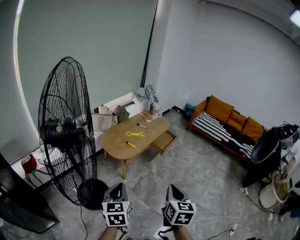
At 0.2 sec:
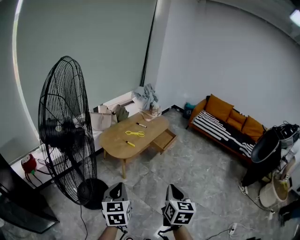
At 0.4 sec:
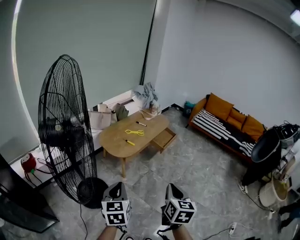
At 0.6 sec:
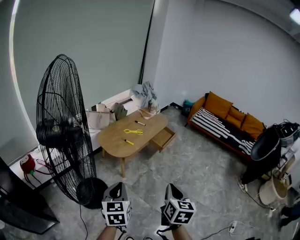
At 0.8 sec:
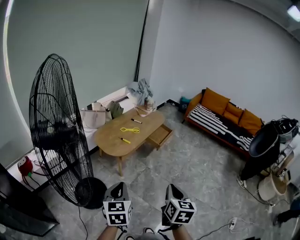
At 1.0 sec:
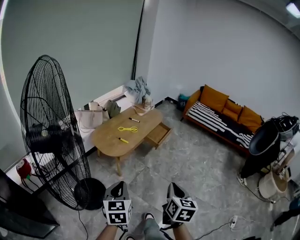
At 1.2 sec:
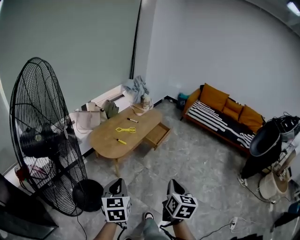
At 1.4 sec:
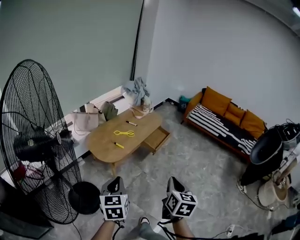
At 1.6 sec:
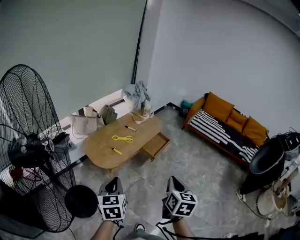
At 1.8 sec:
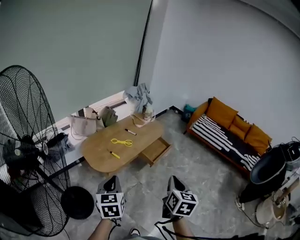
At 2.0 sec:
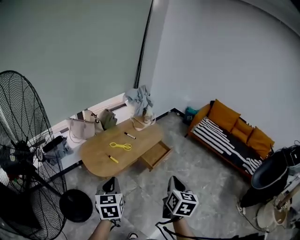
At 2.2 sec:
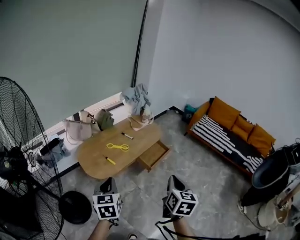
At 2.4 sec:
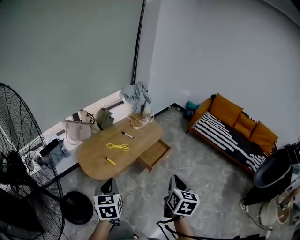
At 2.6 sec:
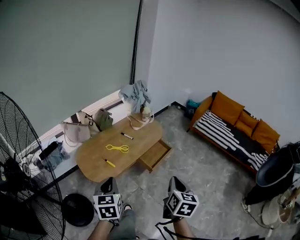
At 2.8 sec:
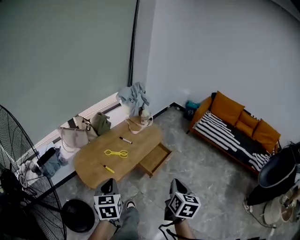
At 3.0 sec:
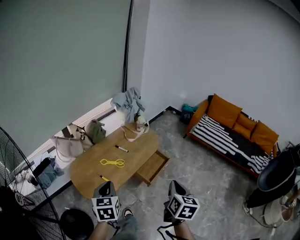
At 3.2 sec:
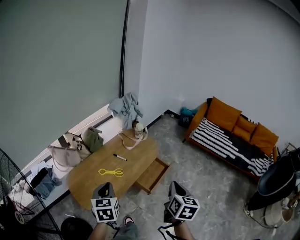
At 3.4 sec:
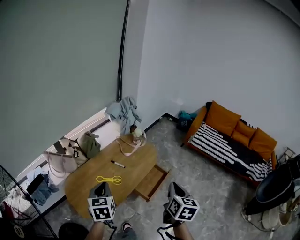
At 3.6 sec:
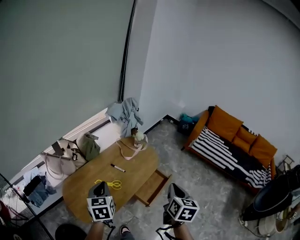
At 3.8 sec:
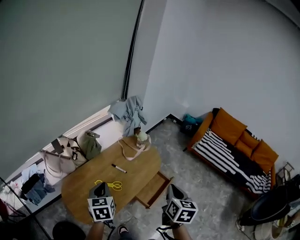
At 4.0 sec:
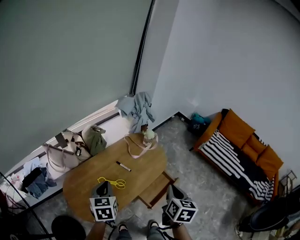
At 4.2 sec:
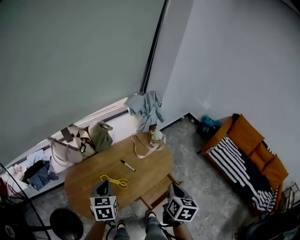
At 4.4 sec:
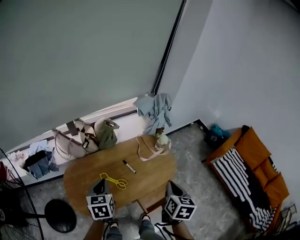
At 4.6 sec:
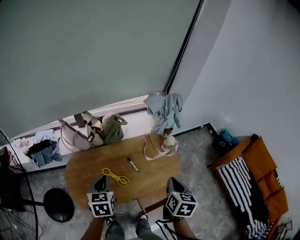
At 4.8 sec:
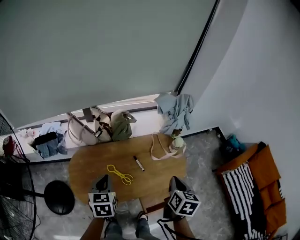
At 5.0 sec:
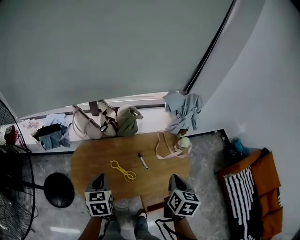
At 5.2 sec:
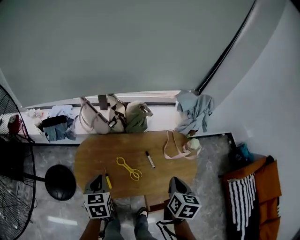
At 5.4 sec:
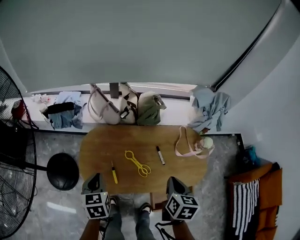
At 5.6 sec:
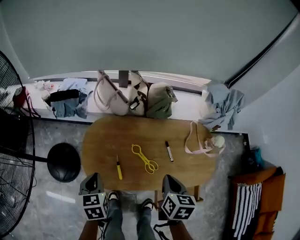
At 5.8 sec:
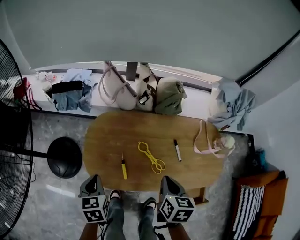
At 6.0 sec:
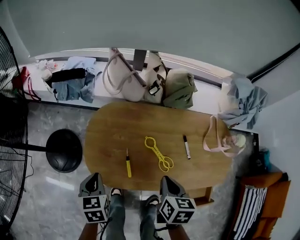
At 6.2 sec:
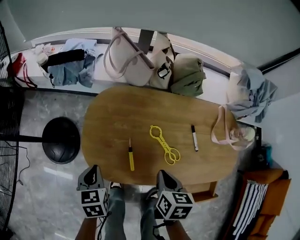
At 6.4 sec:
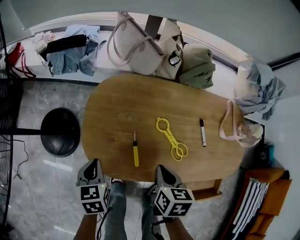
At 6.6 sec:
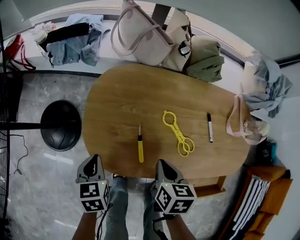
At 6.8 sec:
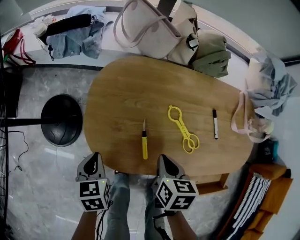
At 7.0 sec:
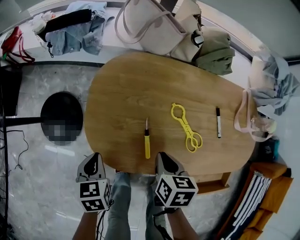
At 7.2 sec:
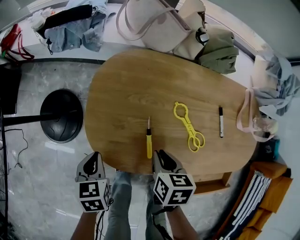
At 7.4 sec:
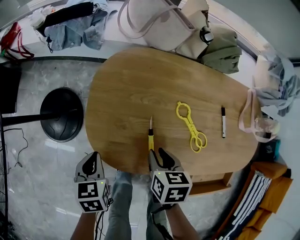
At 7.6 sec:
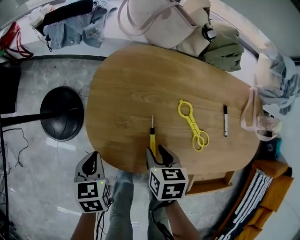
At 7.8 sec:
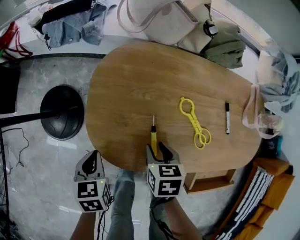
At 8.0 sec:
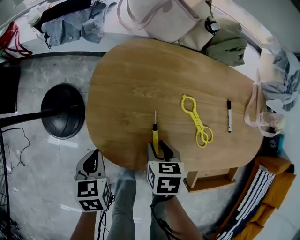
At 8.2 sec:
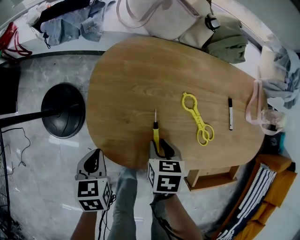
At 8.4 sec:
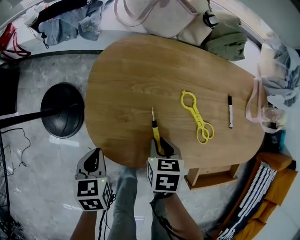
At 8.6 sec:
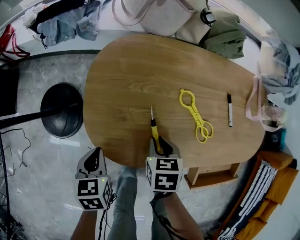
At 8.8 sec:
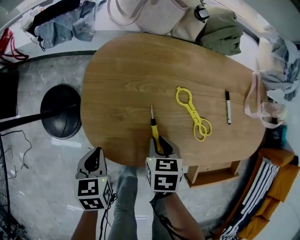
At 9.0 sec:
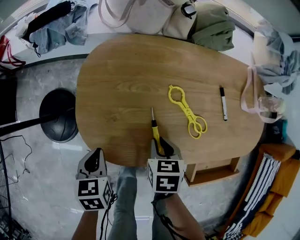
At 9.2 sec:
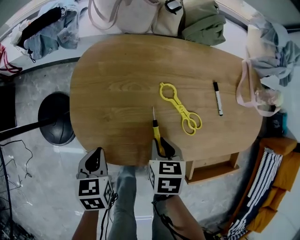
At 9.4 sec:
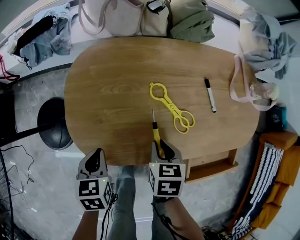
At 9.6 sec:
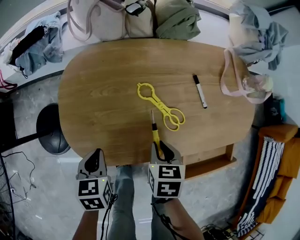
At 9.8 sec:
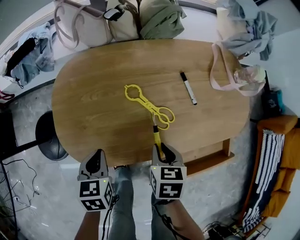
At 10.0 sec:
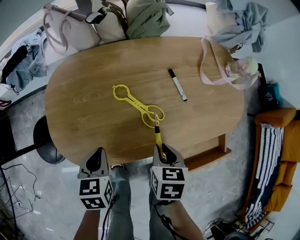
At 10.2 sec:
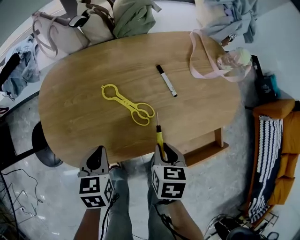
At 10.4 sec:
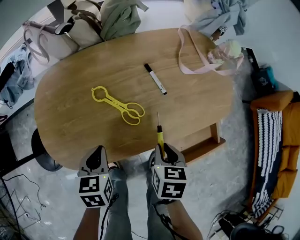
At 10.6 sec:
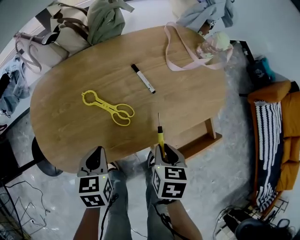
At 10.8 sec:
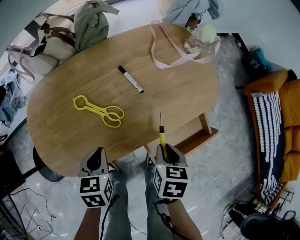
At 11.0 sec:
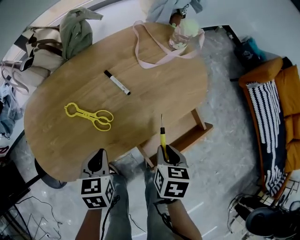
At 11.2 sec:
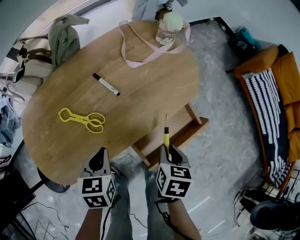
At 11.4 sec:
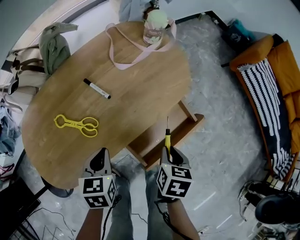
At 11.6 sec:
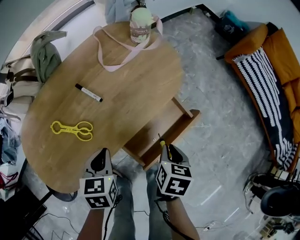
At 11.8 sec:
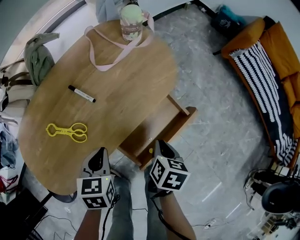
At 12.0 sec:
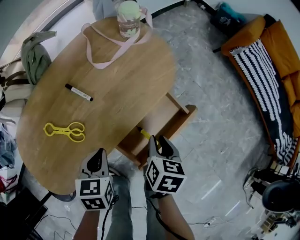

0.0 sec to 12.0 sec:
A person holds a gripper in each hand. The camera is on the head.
0.0 sec to 1.6 sec: Both grippers travel together forward and to the right, about 25 cm.
1.6 sec to 3.0 sec: The two grippers go about 30 cm forward.
3.0 sec to 4.4 sec: Both grippers travel together forward, some 30 cm. The right gripper changes its angle by about 20 degrees. The left gripper turns by approximately 20 degrees.
4.4 sec to 6.0 sec: The two grippers go about 25 cm downward. The left gripper rotates approximately 40 degrees; the right gripper turns by some 40 degrees.
6.0 sec to 7.6 sec: The grippers both shift downward and to the left by approximately 20 cm. The right gripper opens its fingers.
7.6 sec to 9.0 sec: The grippers make only small movements.
9.0 sec to 10.4 sec: Both grippers travel together to the right, about 20 cm. The left gripper turns by some 20 degrees; the right gripper changes its angle by approximately 30 degrees.
10.4 sec to 12.0 sec: The right gripper changes place by about 20 cm, and rotates about 40 degrees; the left gripper moves approximately 20 cm, and swivels roughly 30 degrees.

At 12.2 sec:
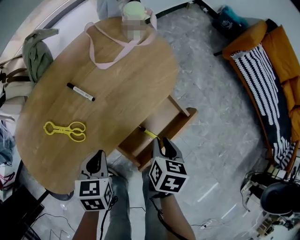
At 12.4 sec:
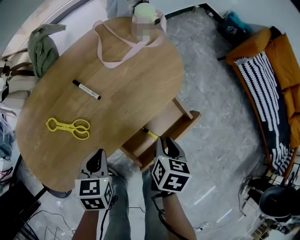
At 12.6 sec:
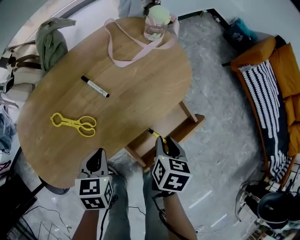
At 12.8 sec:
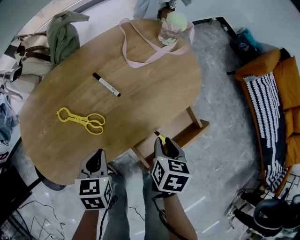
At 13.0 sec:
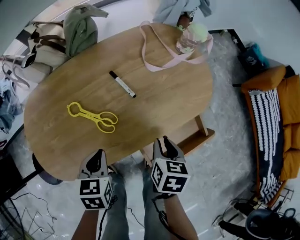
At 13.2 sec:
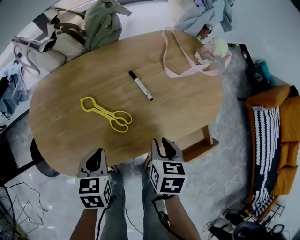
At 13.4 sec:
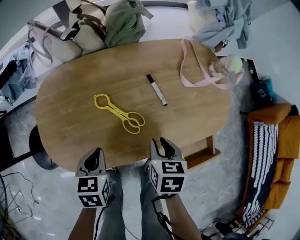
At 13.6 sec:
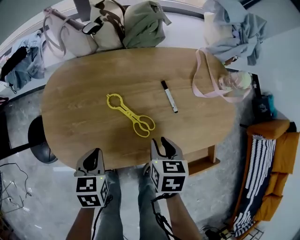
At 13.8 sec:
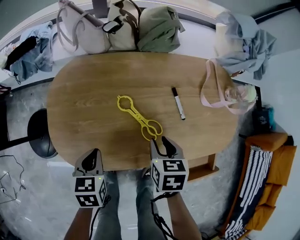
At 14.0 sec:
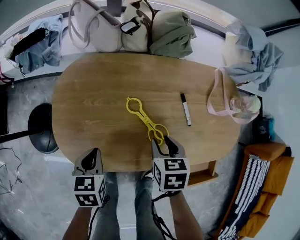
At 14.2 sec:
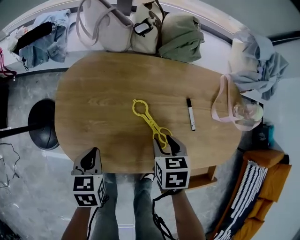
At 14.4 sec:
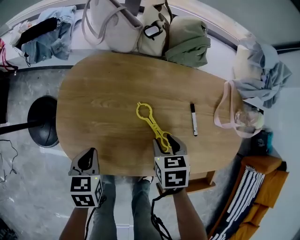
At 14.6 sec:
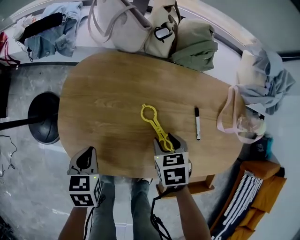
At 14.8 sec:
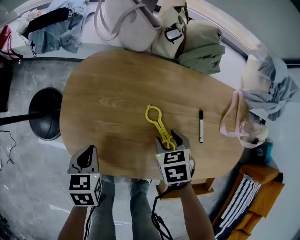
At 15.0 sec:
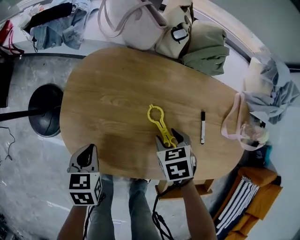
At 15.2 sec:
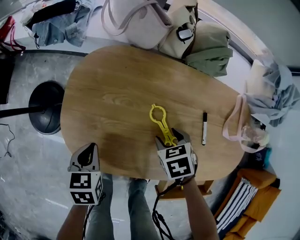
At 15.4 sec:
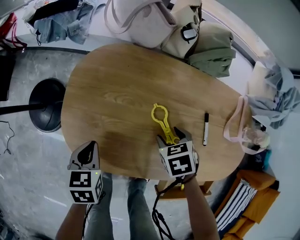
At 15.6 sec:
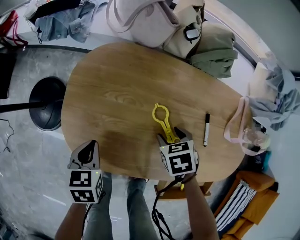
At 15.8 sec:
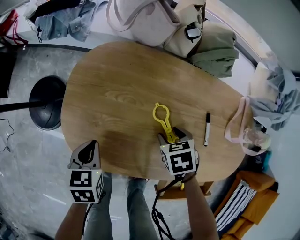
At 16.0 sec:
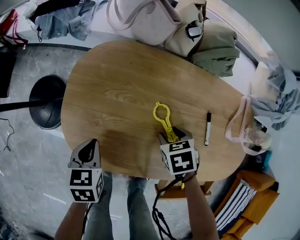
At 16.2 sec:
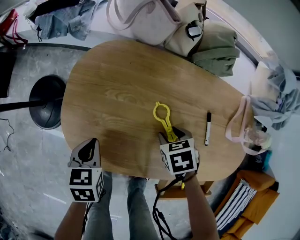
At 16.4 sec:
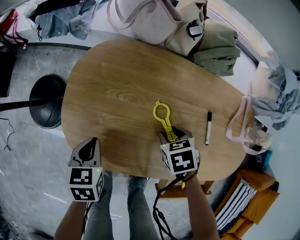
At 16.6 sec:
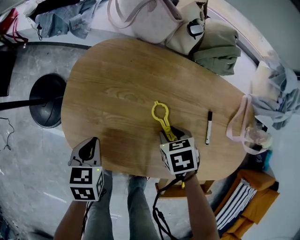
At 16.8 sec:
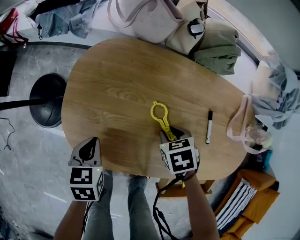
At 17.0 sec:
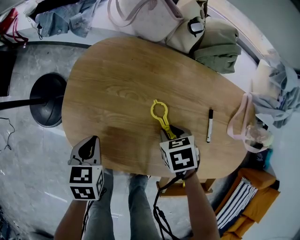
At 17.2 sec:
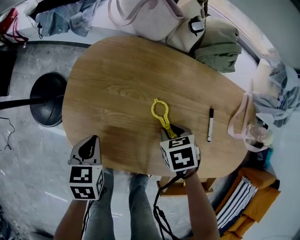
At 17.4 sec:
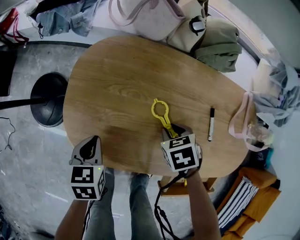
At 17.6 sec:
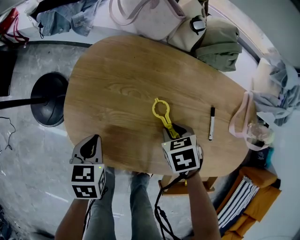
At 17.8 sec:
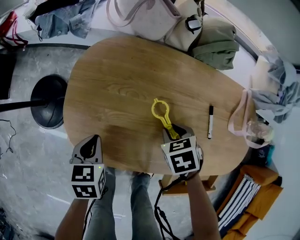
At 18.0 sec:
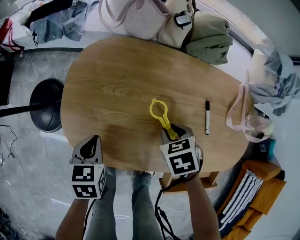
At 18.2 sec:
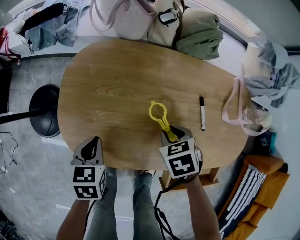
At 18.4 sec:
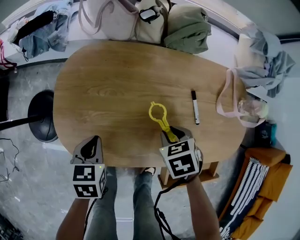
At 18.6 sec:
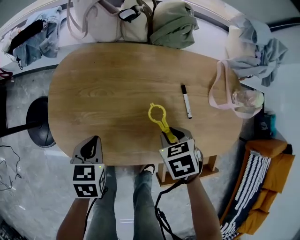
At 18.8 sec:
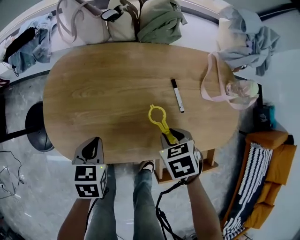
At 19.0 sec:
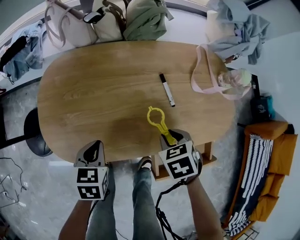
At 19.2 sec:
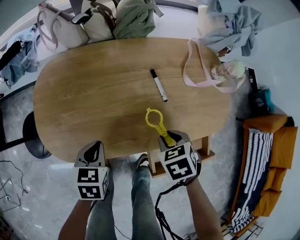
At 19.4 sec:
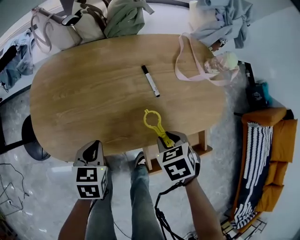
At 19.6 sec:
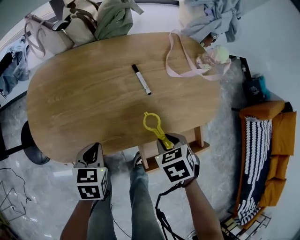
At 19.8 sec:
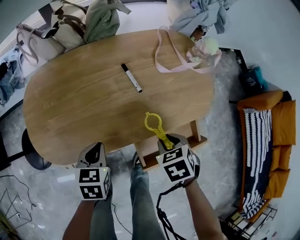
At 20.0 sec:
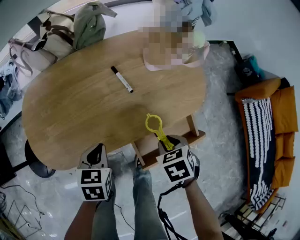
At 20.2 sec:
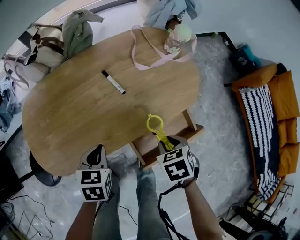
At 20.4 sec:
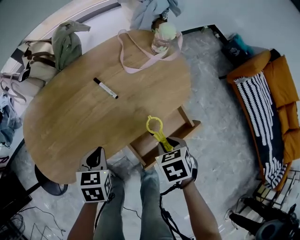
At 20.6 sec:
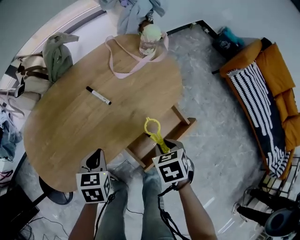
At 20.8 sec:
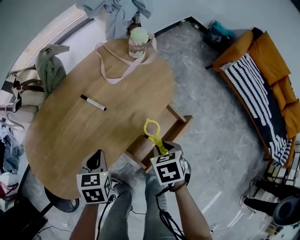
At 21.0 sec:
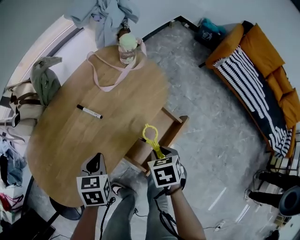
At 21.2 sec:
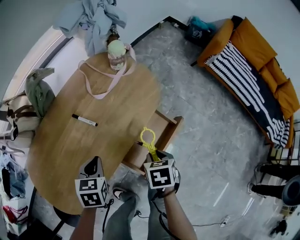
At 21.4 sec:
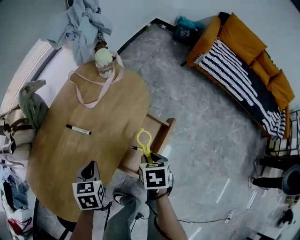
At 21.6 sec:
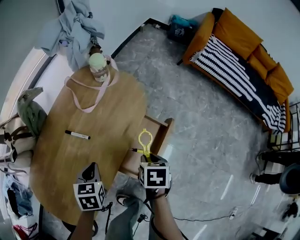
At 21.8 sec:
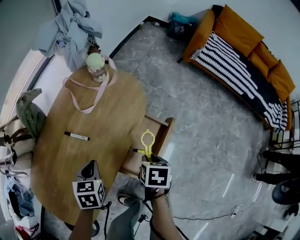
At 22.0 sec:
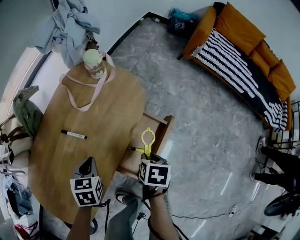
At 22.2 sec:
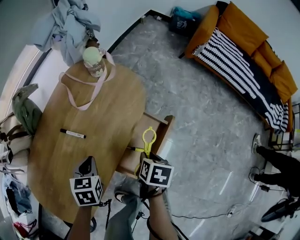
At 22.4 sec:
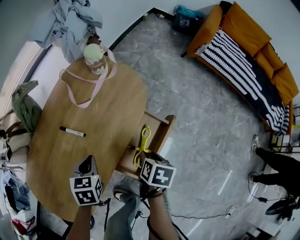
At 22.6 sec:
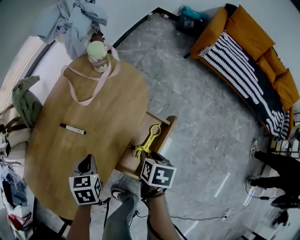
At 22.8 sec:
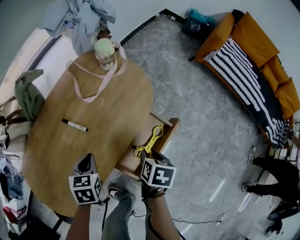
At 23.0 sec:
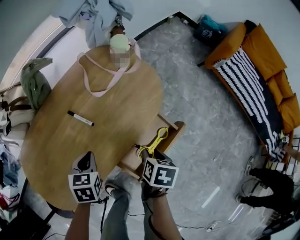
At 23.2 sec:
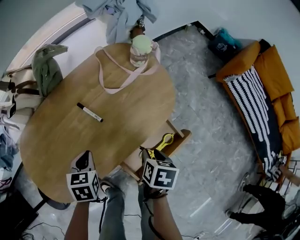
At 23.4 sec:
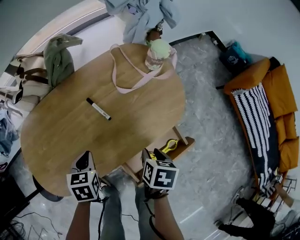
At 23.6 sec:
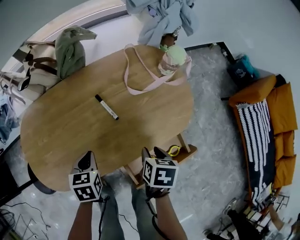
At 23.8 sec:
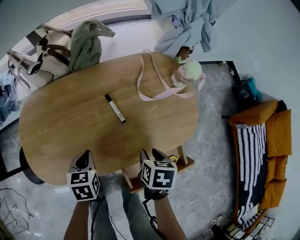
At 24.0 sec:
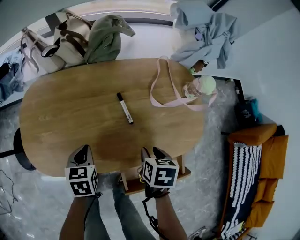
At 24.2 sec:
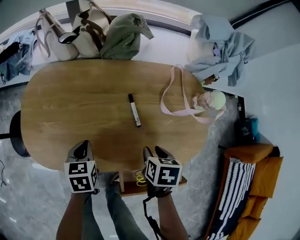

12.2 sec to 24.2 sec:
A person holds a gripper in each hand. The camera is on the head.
12.2 sec to 13.8 sec: The left gripper shifts by approximately 25 cm, and turns by about 40 degrees. Meanwhile the right gripper changes place by approximately 30 cm, and rotates around the line of its fingers by approximately 50 degrees, counterclockwise from behind.
13.8 sec to 15.2 sec: The left gripper travels to the left by some 10 cm, while the right gripper heads forward, to the left and downward, covering about 10 cm, swivels about 40 degrees, and opens its fingers.
15.2 sec to 16.6 sec: The right gripper closes its fingers.
16.6 sec to 18.2 sec: The grippers make only small movements.
18.2 sec to 19.8 sec: The right gripper goes about 25 cm to the right and backward, and rotates about 20 degrees, while the left gripper travels to the right by approximately 20 cm, and swivels roughly 20 degrees.
19.8 sec to 21.2 sec: The left gripper ends up some 15 cm from where it was, and rotates roughly 30 degrees; the right gripper moves roughly 10 cm, and twists about 50 degrees clockwise, seen from behind.
21.2 sec to 22.6 sec: The right gripper shifts by about 5 cm, and changes its angle by about 30 degrees; the left gripper ends up approximately 5 cm from where it was.
22.6 sec to 24.2 sec: The right gripper changes place by approximately 20 cm, and rolls counterclockwise, seen from behind, by roughly 60 degrees. Meanwhile the left gripper moves some 15 cm, and rotates around the line of its fingers by some 50 degrees, counterclockwise from behind.
